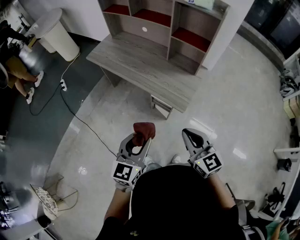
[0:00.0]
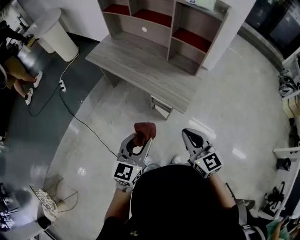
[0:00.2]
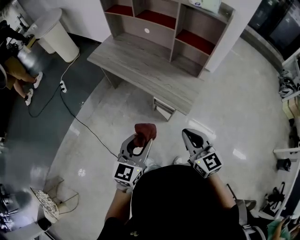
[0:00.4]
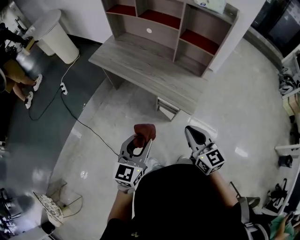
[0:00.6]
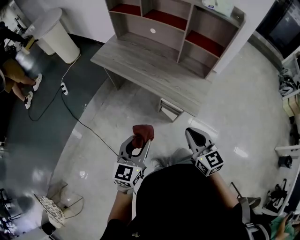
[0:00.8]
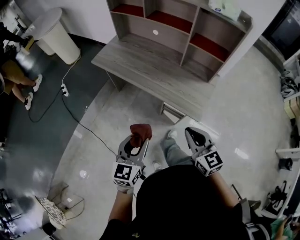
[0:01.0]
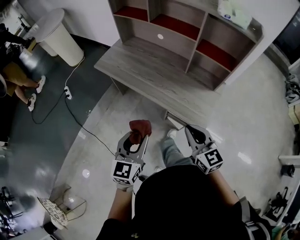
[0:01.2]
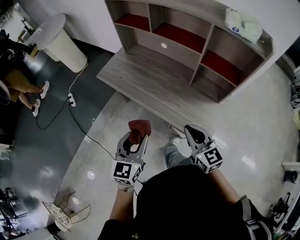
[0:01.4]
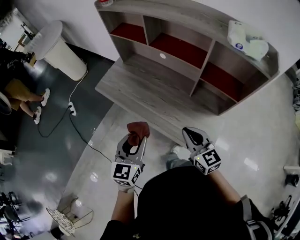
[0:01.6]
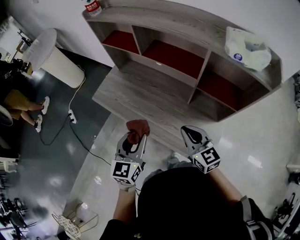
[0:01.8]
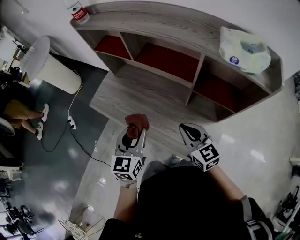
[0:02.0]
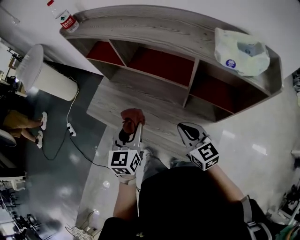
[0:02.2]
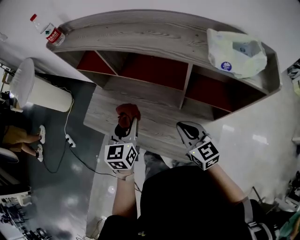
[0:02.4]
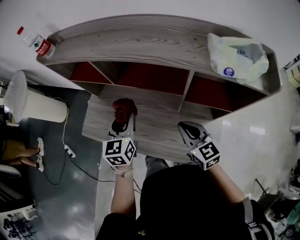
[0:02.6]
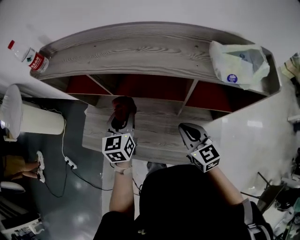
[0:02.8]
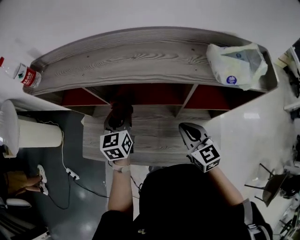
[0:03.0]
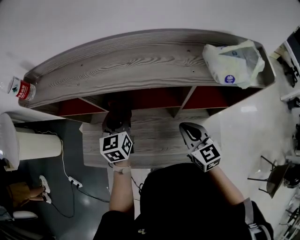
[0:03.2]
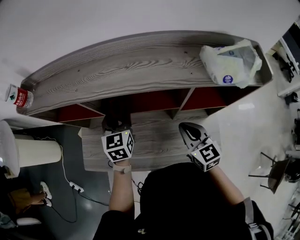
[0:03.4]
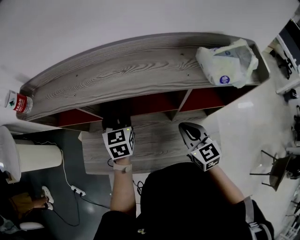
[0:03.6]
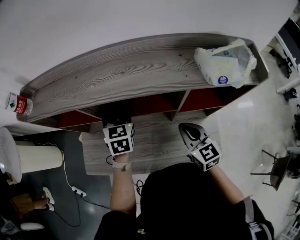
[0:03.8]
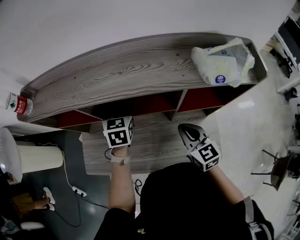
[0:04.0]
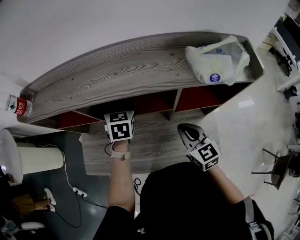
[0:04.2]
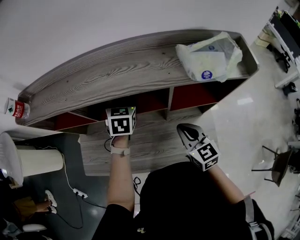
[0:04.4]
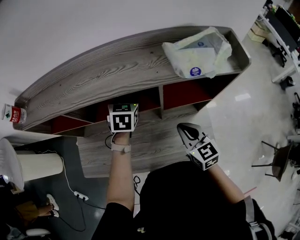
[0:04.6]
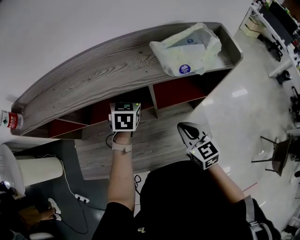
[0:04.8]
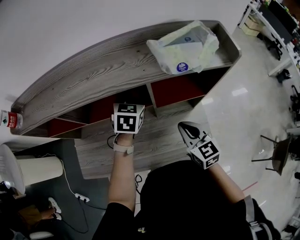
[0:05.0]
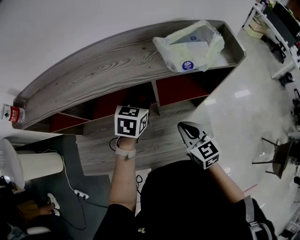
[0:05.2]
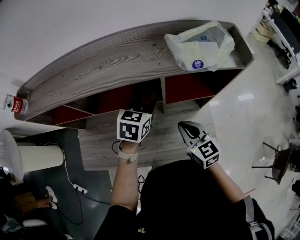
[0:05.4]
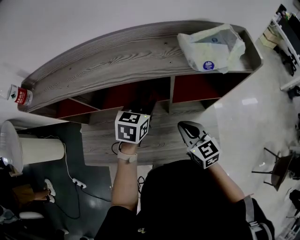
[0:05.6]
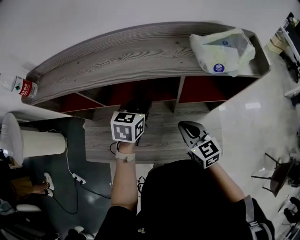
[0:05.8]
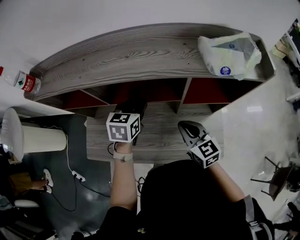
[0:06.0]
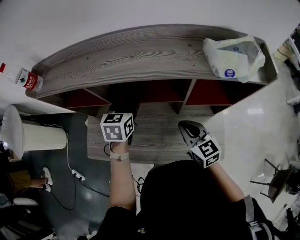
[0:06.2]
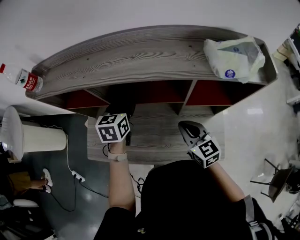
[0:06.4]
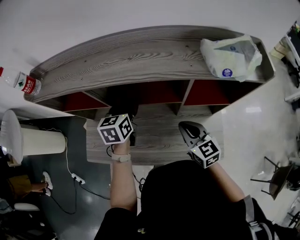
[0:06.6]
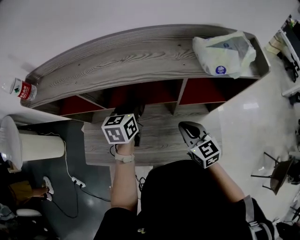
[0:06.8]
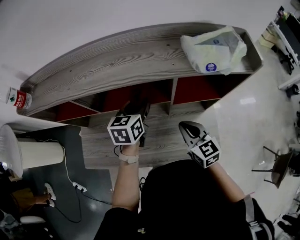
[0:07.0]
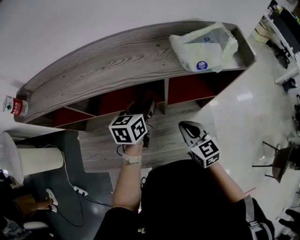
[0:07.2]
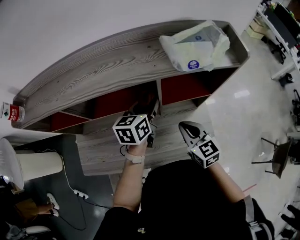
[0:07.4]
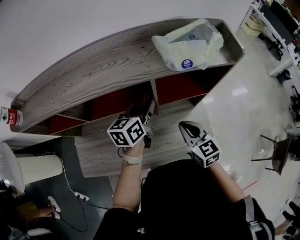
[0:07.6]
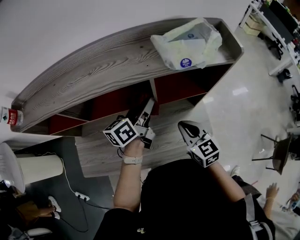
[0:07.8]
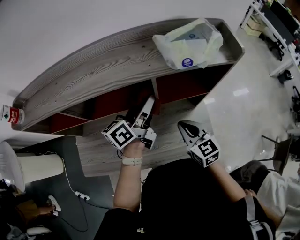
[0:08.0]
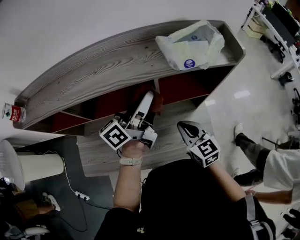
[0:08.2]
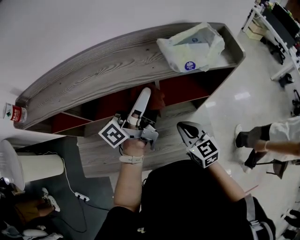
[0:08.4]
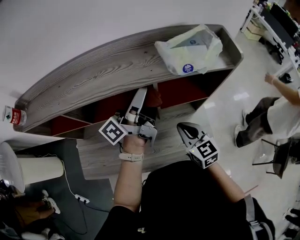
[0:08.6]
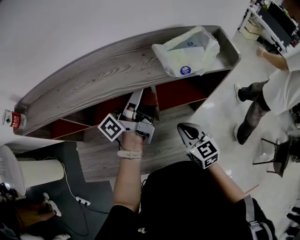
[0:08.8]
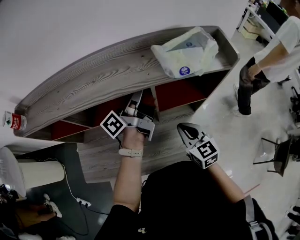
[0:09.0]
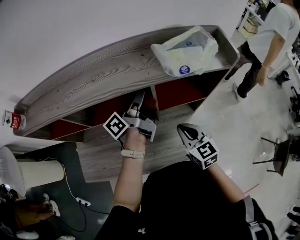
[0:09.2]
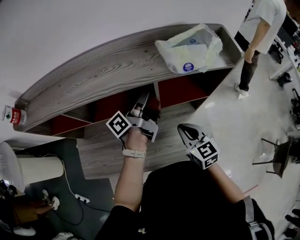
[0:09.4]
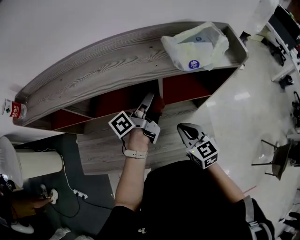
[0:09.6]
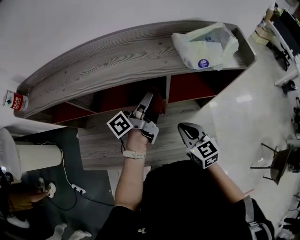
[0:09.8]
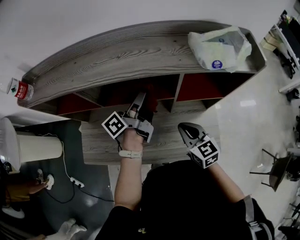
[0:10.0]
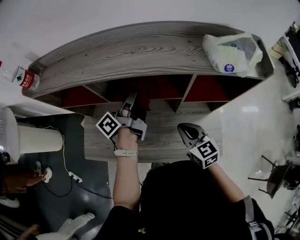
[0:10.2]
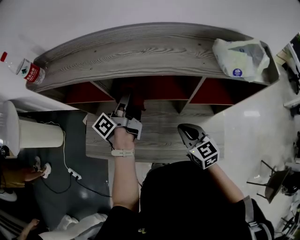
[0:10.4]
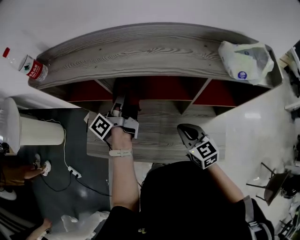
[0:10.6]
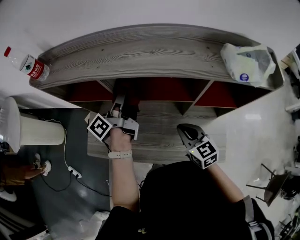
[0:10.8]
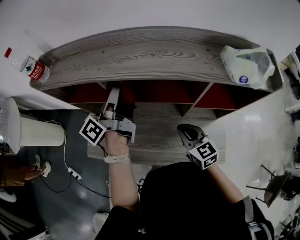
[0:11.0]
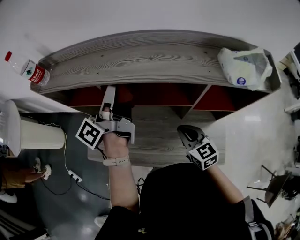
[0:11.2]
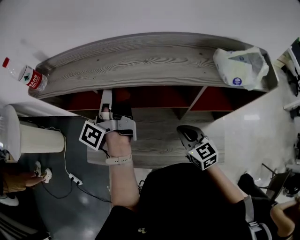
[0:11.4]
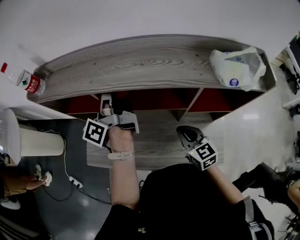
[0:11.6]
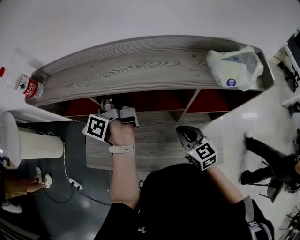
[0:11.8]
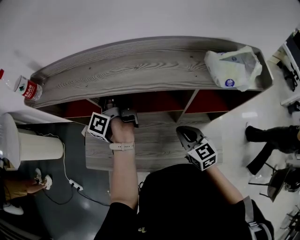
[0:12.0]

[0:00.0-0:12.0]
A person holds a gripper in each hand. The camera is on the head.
0:00.0 to 0:01.6: Both grippers move forward, roughly 35 cm.
0:01.6 to 0:03.0: The left gripper is displaced forward by roughly 40 cm. Meanwhile the right gripper goes some 20 cm forward, and rotates about 30 degrees.
0:03.0 to 0:04.4: The left gripper is displaced to the right and forward by some 15 cm, and swivels some 20 degrees.
0:04.4 to 0:06.0: The left gripper travels backward by approximately 5 cm, and travels to the right and back again, about 10 cm each way.
0:06.0 to 0:07.6: The left gripper heads to the right, covering roughly 15 cm, and changes its angle by roughly 30 degrees. Meanwhile the right gripper heads to the right, covering approximately 10 cm.
0:07.6 to 0:09.0: The left gripper heads upward, covering some 10 cm, and tilts its fingers about 40 degrees upward.
0:09.0 to 0:10.4: The left gripper travels to the left by some 20 cm, and changes its angle by approximately 30 degrees, while the right gripper shifts roughly 10 cm to the left.
0:10.4 to 0:12.0: The left gripper is displaced forward by approximately 5 cm, and rotates about 20 degrees.

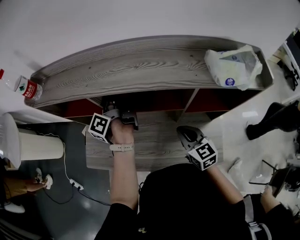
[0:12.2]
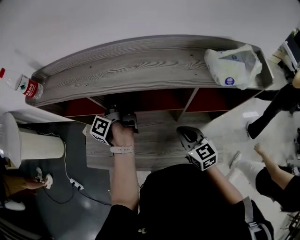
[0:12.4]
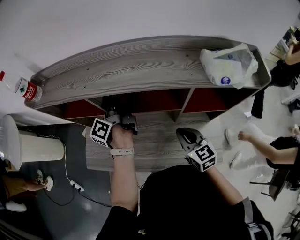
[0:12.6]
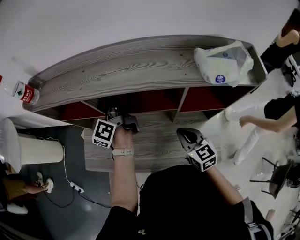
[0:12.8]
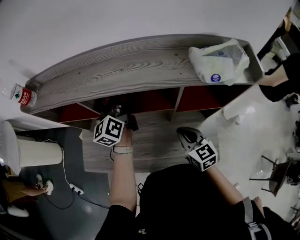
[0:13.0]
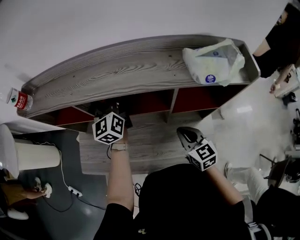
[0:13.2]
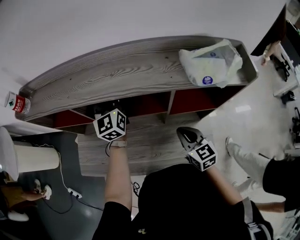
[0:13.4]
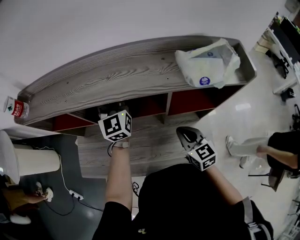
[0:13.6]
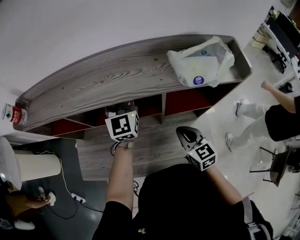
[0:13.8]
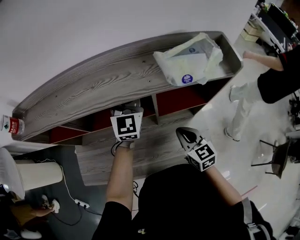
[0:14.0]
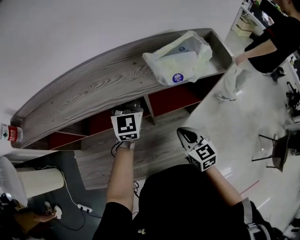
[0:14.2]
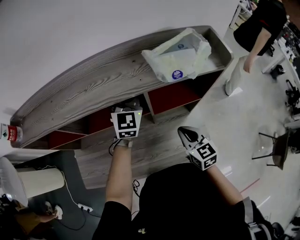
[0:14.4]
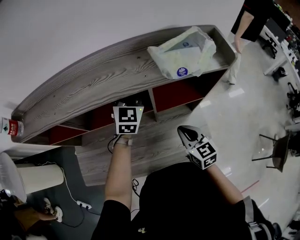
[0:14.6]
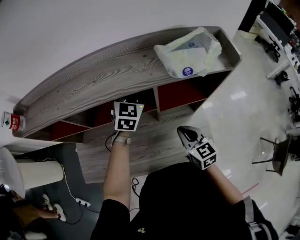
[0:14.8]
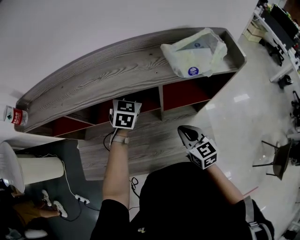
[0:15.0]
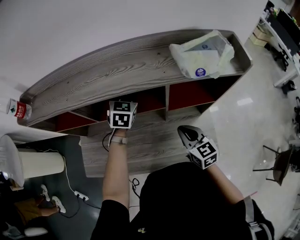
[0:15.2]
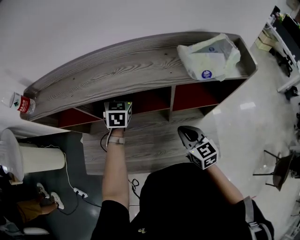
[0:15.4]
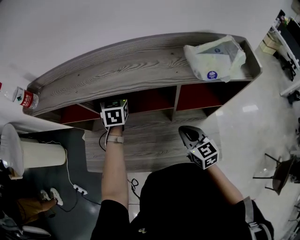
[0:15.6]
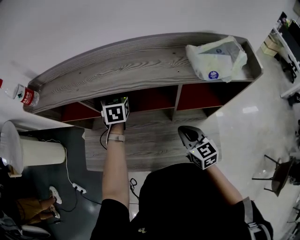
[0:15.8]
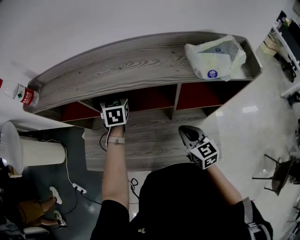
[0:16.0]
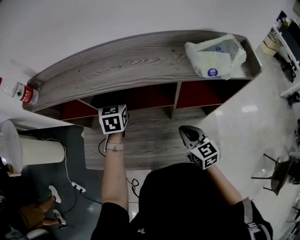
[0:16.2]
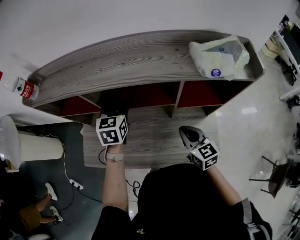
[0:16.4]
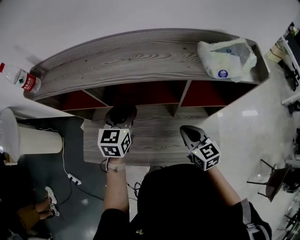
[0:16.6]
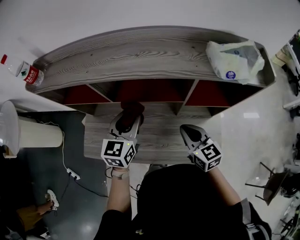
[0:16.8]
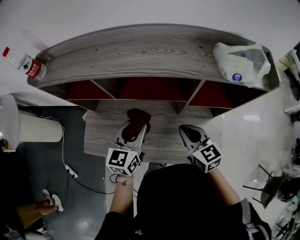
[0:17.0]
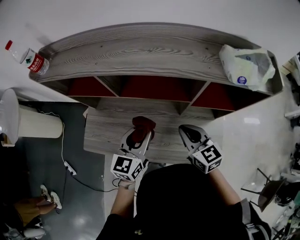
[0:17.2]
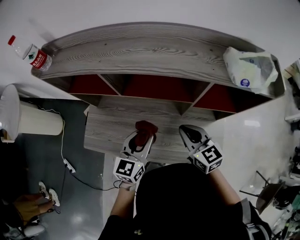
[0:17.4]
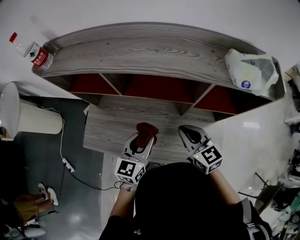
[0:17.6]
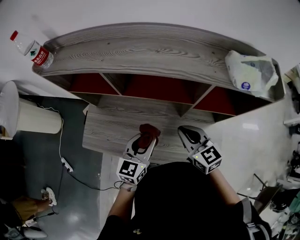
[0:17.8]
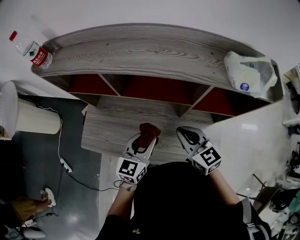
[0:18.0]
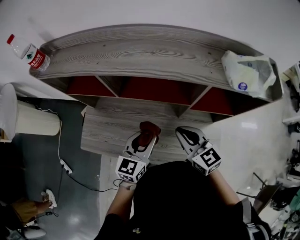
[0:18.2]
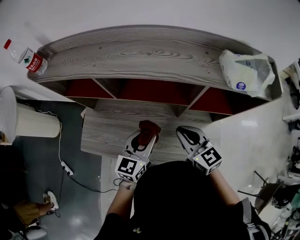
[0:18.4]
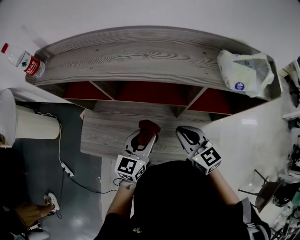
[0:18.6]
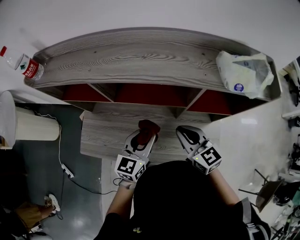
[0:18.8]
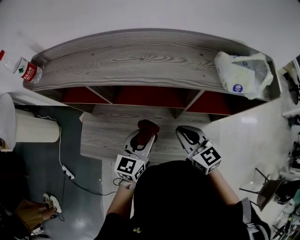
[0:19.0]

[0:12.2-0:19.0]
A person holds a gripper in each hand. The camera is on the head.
0:12.2 to 0:13.6: The left gripper shifts roughly 15 cm to the right and upward, and twists some 80 degrees clockwise, seen from behind. Meanwhile the right gripper shifts about 5 cm to the right.
0:13.6 to 0:15.0: The left gripper travels to the right and downward by some 15 cm, and points its fingers roughly 40 degrees further downward.
0:15.0 to 0:16.2: The left gripper goes approximately 15 cm to the left, and changes its angle by roughly 30 degrees.
0:16.2 to 0:17.6: The right gripper is displaced to the left by roughly 5 cm, while the left gripper travels backward by approximately 20 cm, and changes its angle by roughly 20 degrees.
0:17.6 to 0:19.0: The left gripper changes place by about 5 cm.

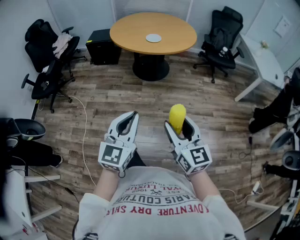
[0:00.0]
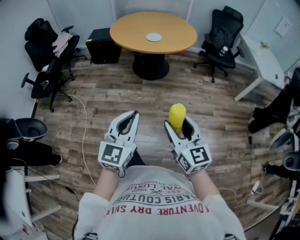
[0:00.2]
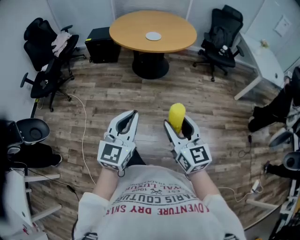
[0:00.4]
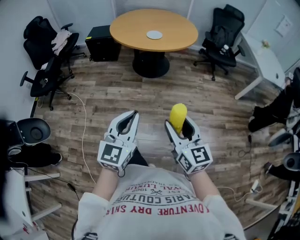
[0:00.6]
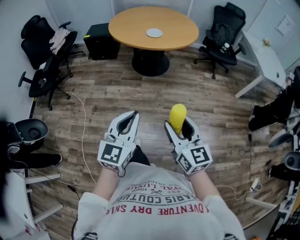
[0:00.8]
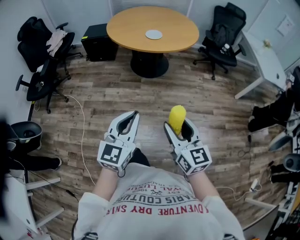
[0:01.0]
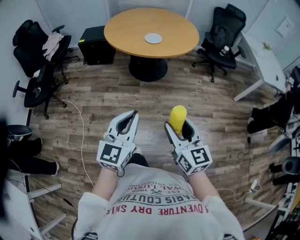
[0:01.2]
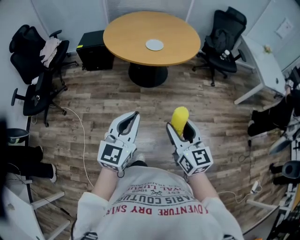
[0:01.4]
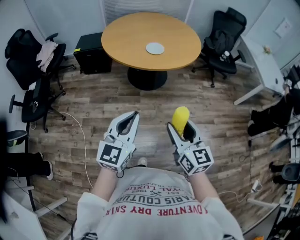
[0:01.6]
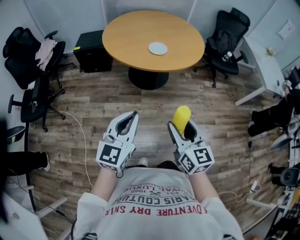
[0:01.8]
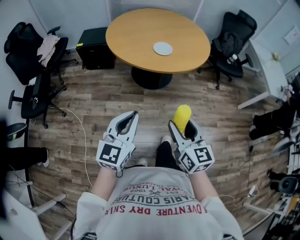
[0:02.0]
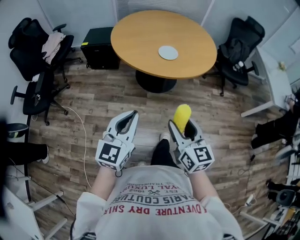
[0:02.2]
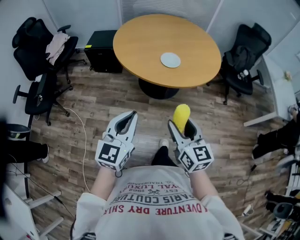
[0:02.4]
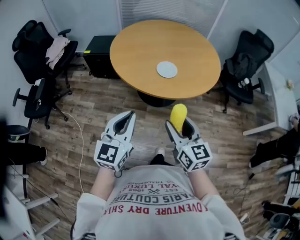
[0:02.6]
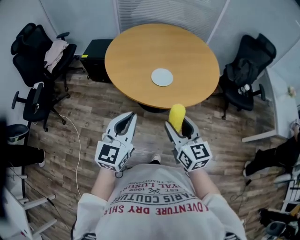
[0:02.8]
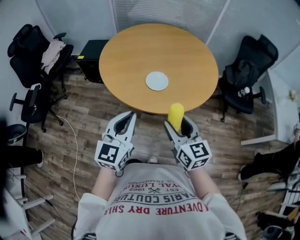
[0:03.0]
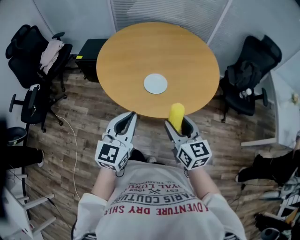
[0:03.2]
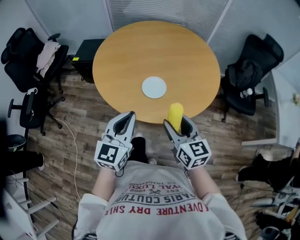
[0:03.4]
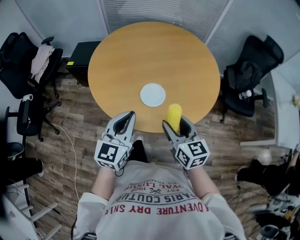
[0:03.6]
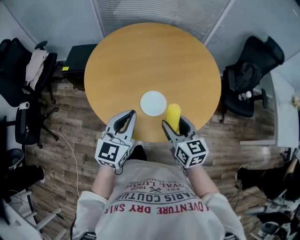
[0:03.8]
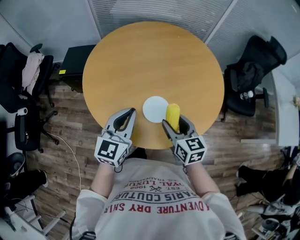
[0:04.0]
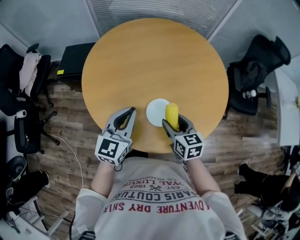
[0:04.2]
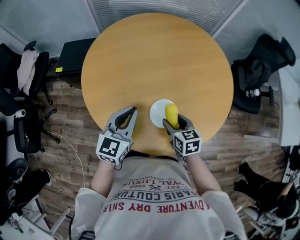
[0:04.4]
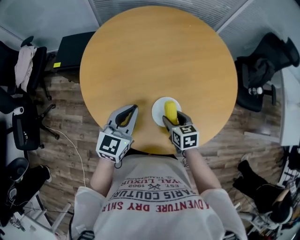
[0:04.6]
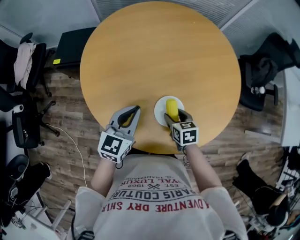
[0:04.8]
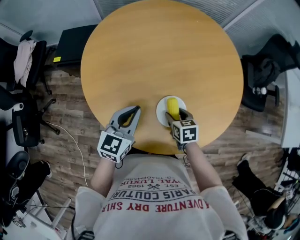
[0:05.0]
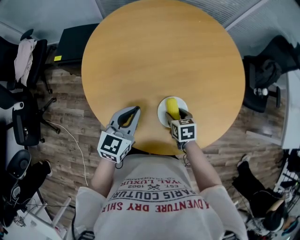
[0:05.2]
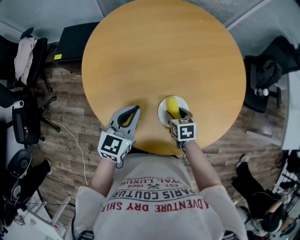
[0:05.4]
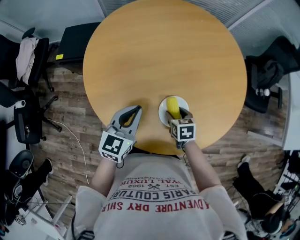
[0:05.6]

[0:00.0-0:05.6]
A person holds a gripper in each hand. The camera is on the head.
0:00.0 to 0:01.4: Both grippers move forward, some 20 cm.
0:01.4 to 0:02.8: Both grippers travel together forward, about 35 cm.
0:02.8 to 0:04.2: The left gripper goes some 40 cm forward, while the right gripper travels forward and downward by some 40 cm, and swivels roughly 20 degrees.
0:04.2 to 0:05.6: The left gripper is displaced downward by about 10 cm. The right gripper is displaced downward by approximately 15 cm, and rotates roughly 30 degrees.
